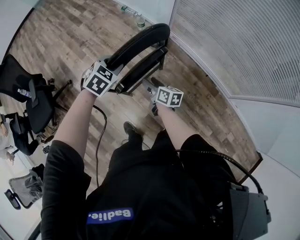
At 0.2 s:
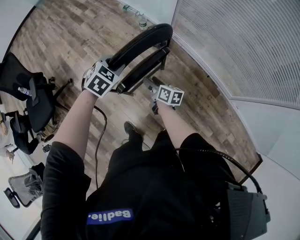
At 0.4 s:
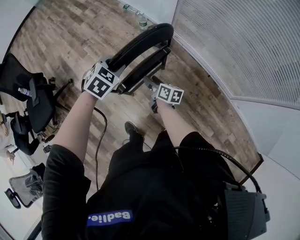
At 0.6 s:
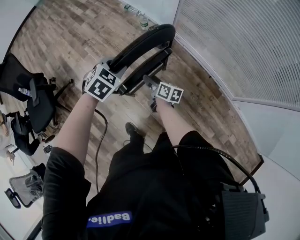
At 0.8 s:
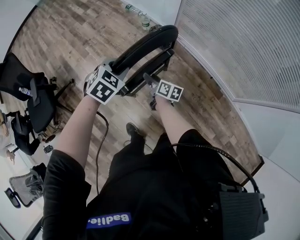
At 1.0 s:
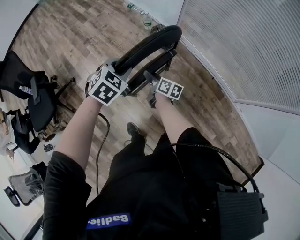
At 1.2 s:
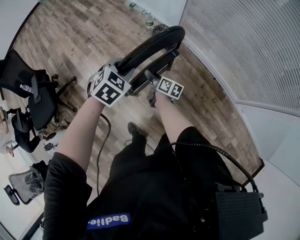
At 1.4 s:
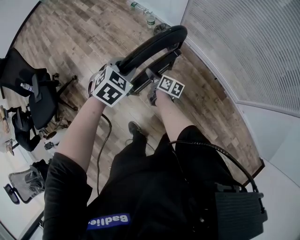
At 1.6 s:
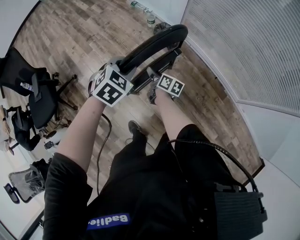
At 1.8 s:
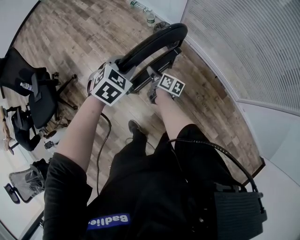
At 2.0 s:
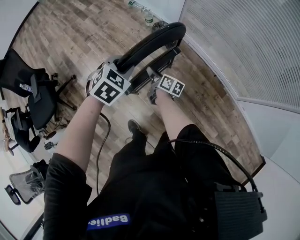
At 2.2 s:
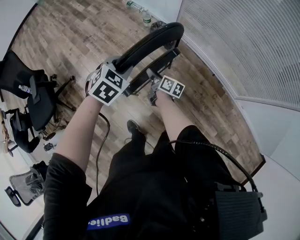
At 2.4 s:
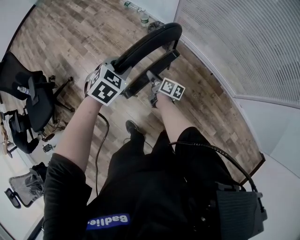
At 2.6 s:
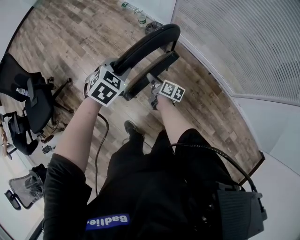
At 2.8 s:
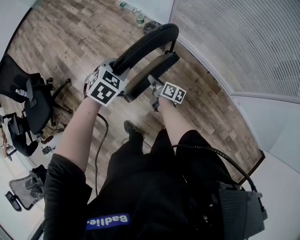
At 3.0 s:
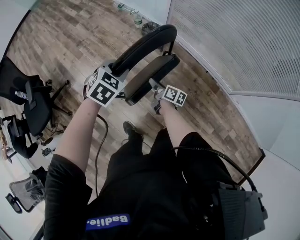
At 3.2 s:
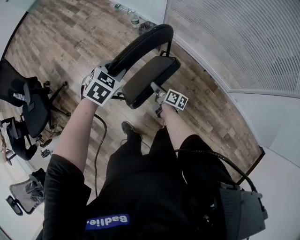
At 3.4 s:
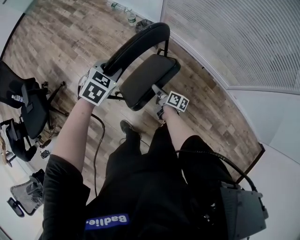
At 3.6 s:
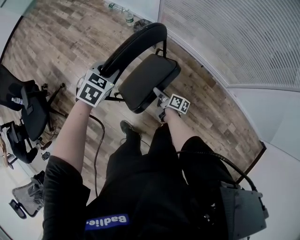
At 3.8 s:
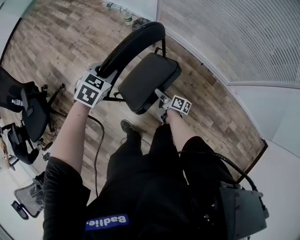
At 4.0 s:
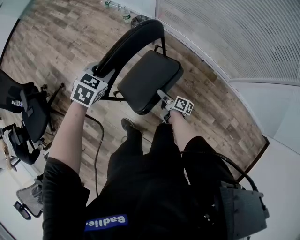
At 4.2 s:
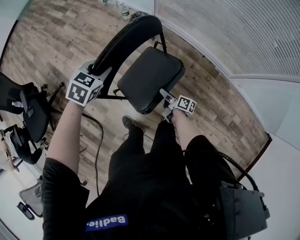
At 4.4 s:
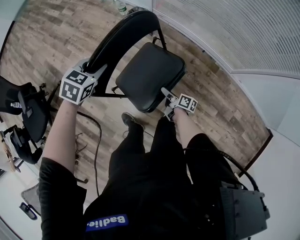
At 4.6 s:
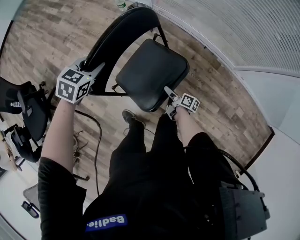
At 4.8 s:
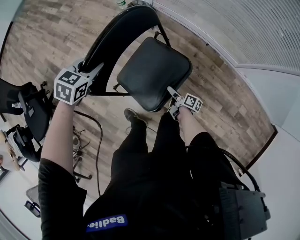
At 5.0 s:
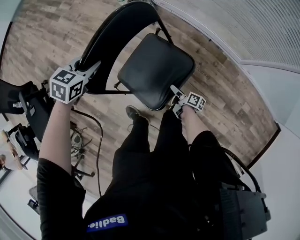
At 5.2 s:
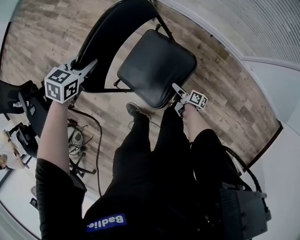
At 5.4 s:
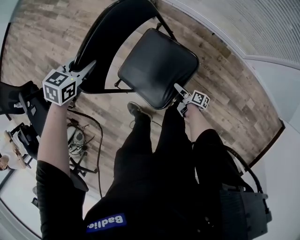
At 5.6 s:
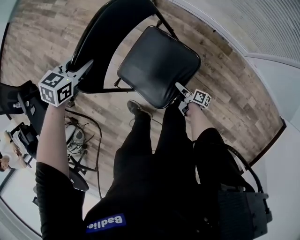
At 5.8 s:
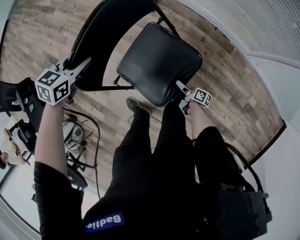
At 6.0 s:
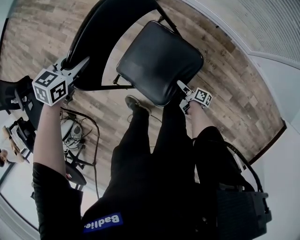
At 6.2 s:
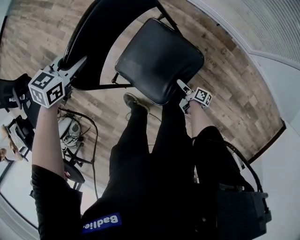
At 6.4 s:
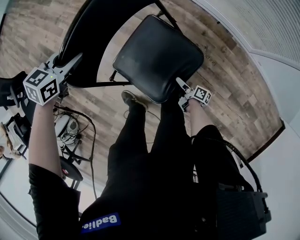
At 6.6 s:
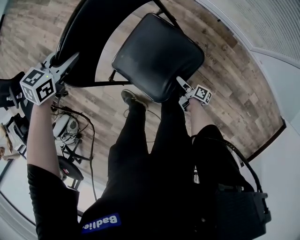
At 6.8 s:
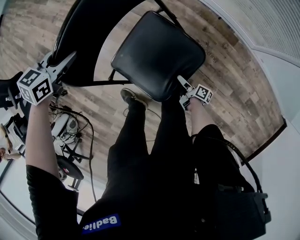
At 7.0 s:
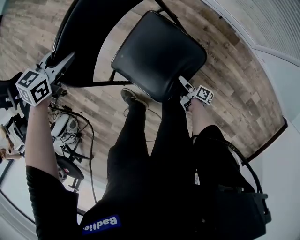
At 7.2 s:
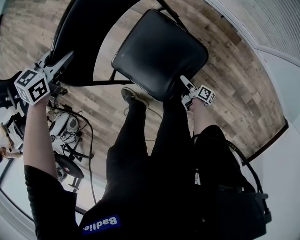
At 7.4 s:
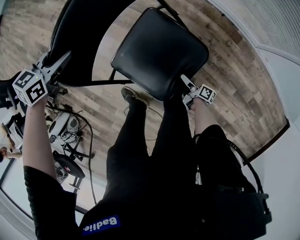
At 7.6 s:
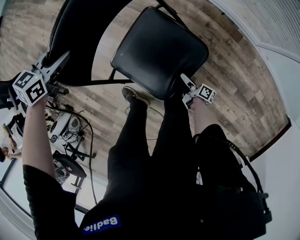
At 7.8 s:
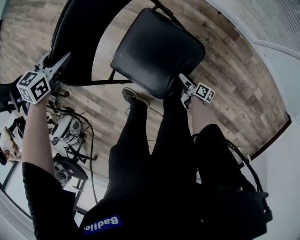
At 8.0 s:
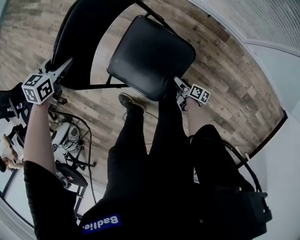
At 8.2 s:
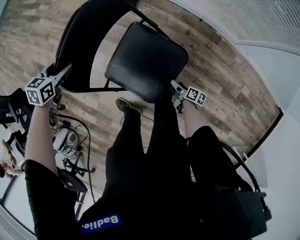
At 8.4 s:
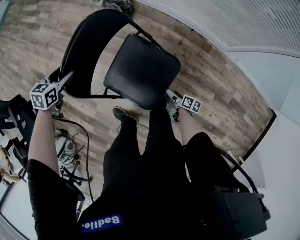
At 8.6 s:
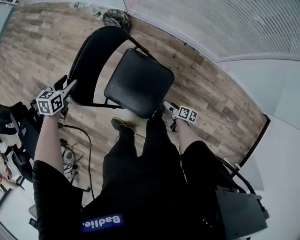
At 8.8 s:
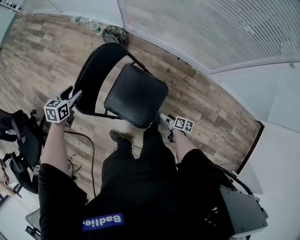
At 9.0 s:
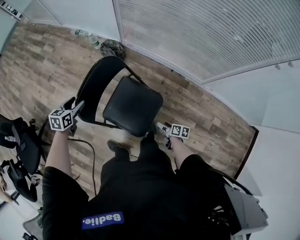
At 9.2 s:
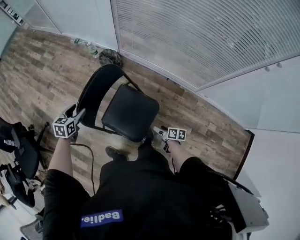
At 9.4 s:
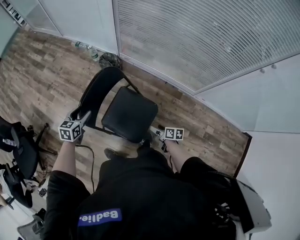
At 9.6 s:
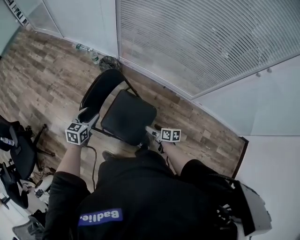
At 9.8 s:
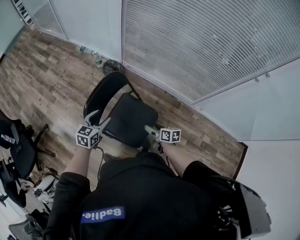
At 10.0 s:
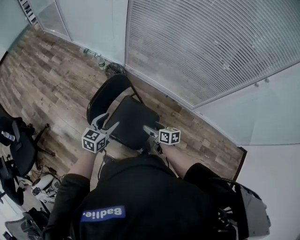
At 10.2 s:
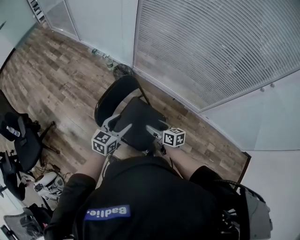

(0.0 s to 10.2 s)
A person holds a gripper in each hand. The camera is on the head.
0.0 s - 1.4 s: The right gripper moves forward and downward, roughly 10 cm.
1.4 s - 3.0 s: The right gripper moves backward and to the right, about 10 cm.
3.0 s - 4.4 s: The right gripper heads downward, to the right and backward, covering some 20 cm; the left gripper goes about 5 cm downward.
4.4 s - 5.8 s: The left gripper travels downward by approximately 10 cm. Meanwhile the right gripper is displaced downward and to the right by roughly 15 cm.
5.8 s - 7.2 s: The grippers both shift downward by some 5 cm.
7.2 s - 8.8 s: The left gripper heads upward, covering some 10 cm, and opens its fingers. The right gripper shifts about 20 cm upward, and changes its angle by about 20 degrees.
8.8 s - 10.2 s: The left gripper heads upward, backward and to the right, covering some 30 cm, and rotates some 30 degrees; the right gripper goes approximately 35 cm upward and to the left, and turns by some 40 degrees.

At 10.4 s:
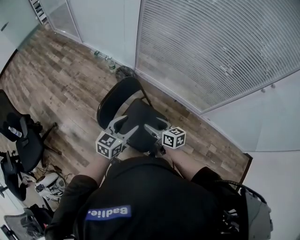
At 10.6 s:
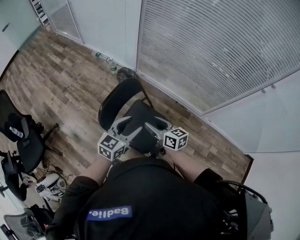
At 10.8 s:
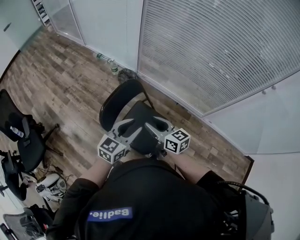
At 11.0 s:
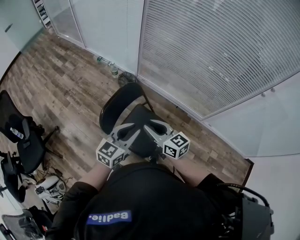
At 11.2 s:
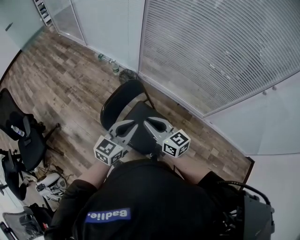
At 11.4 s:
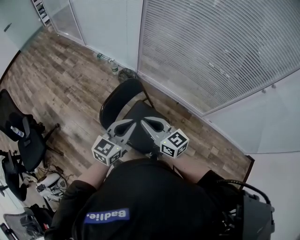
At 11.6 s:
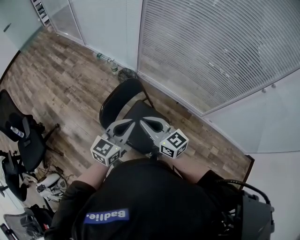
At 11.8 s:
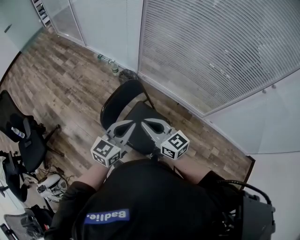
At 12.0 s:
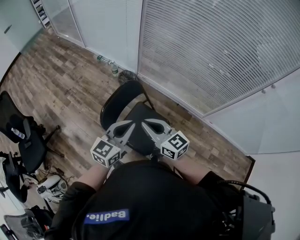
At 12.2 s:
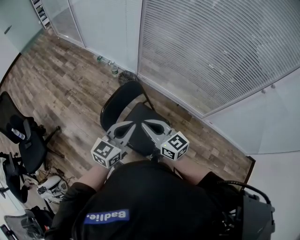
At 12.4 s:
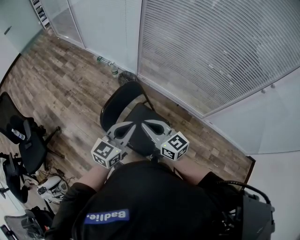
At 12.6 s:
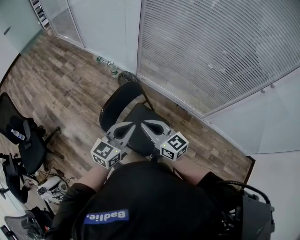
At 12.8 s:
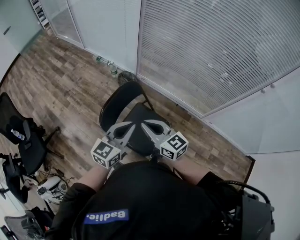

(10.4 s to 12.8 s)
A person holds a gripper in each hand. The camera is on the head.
10.4 s - 11.6 s: The right gripper moves upward and to the left, roughly 15 cm, turns by roughly 30 degrees, and closes; the left gripper is displaced upward by some 10 cm, and closes.
11.6 s - 12.8 s: Both grippers stay about where they are.

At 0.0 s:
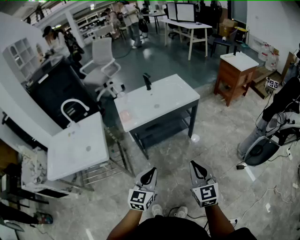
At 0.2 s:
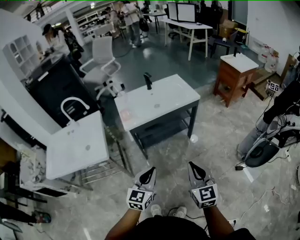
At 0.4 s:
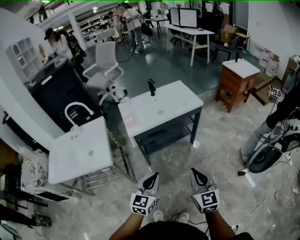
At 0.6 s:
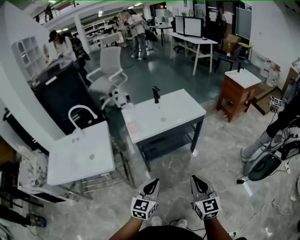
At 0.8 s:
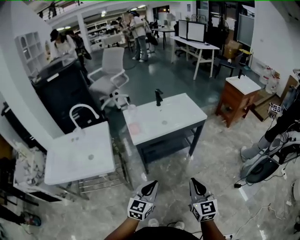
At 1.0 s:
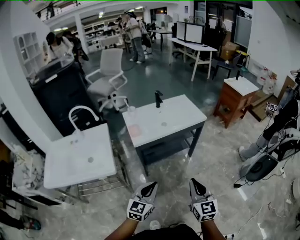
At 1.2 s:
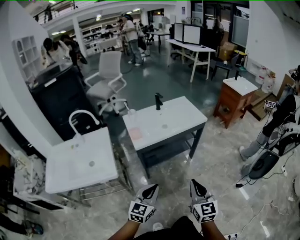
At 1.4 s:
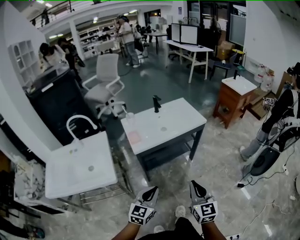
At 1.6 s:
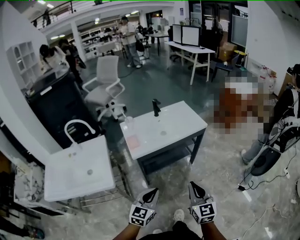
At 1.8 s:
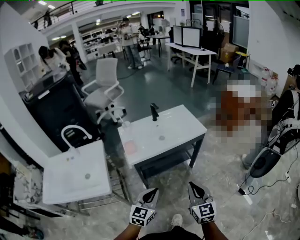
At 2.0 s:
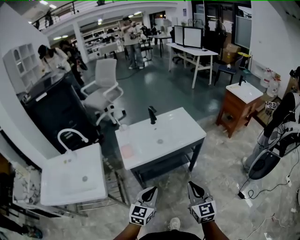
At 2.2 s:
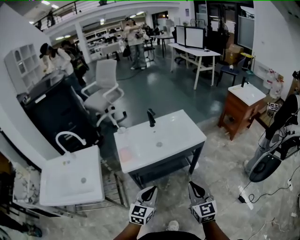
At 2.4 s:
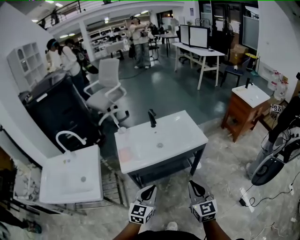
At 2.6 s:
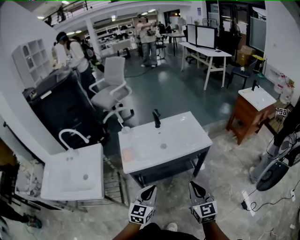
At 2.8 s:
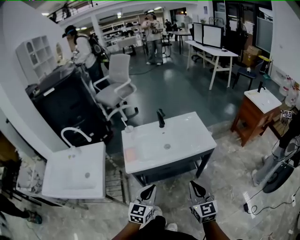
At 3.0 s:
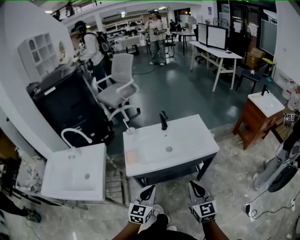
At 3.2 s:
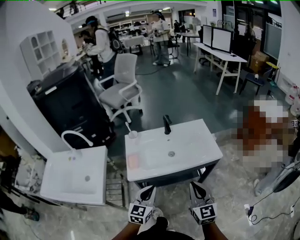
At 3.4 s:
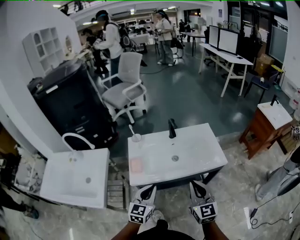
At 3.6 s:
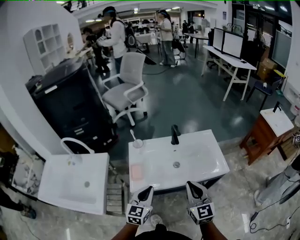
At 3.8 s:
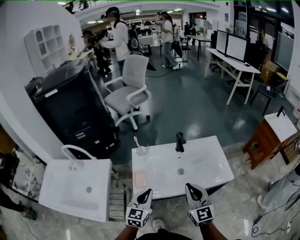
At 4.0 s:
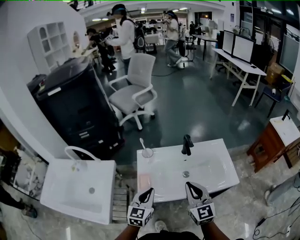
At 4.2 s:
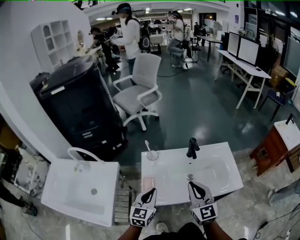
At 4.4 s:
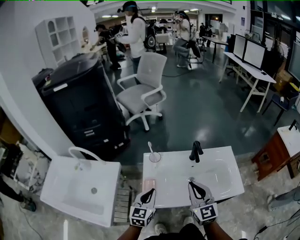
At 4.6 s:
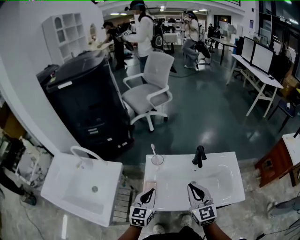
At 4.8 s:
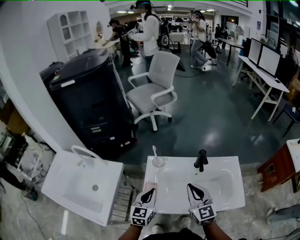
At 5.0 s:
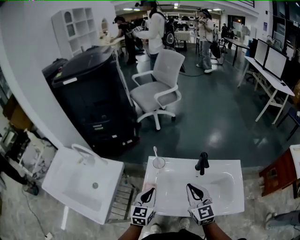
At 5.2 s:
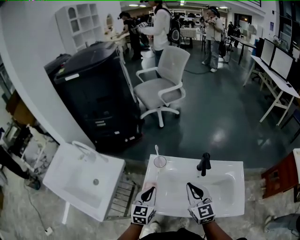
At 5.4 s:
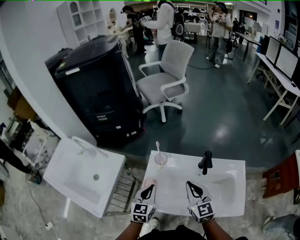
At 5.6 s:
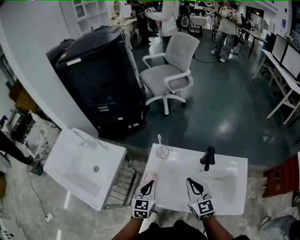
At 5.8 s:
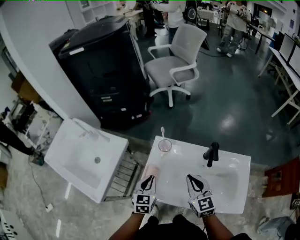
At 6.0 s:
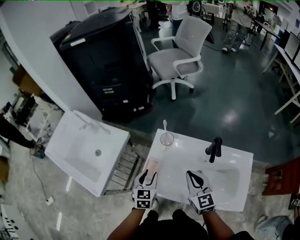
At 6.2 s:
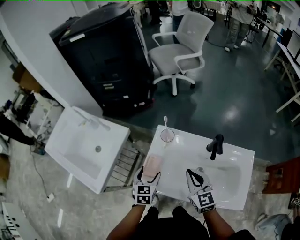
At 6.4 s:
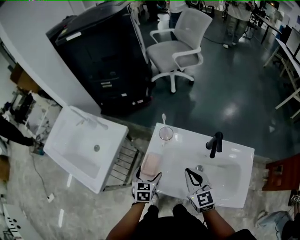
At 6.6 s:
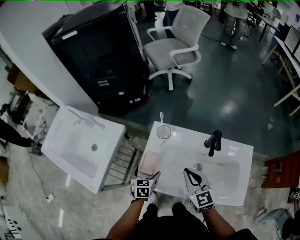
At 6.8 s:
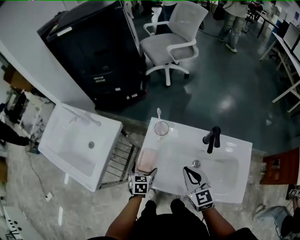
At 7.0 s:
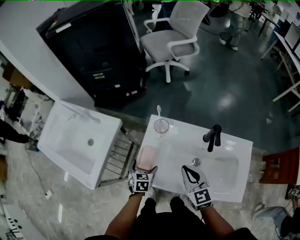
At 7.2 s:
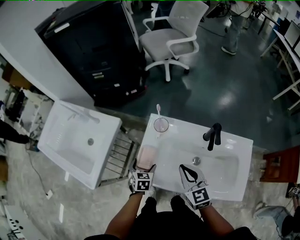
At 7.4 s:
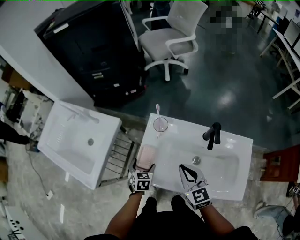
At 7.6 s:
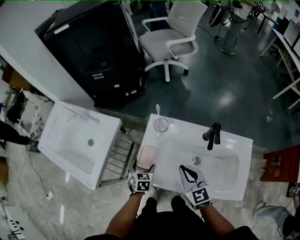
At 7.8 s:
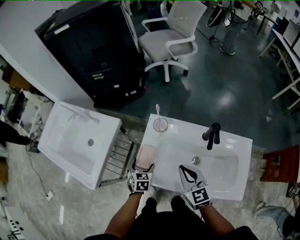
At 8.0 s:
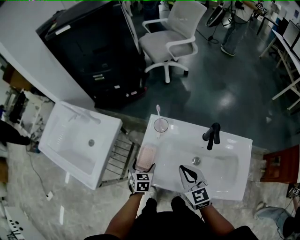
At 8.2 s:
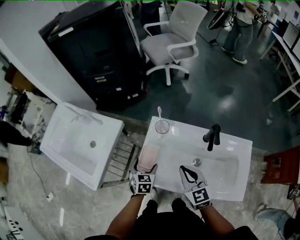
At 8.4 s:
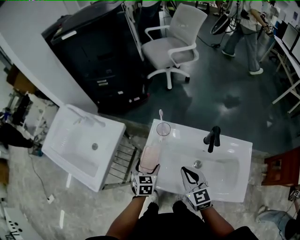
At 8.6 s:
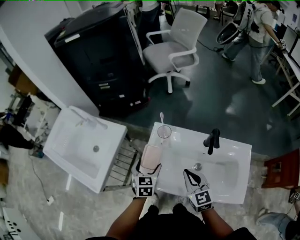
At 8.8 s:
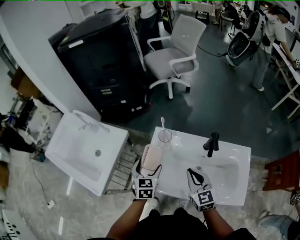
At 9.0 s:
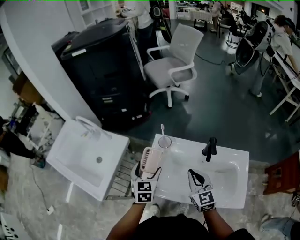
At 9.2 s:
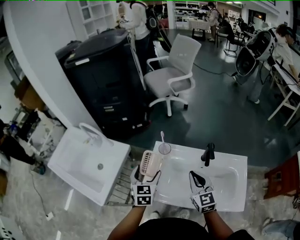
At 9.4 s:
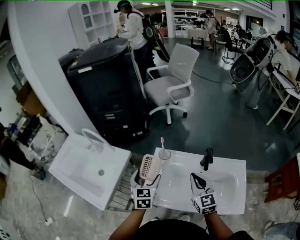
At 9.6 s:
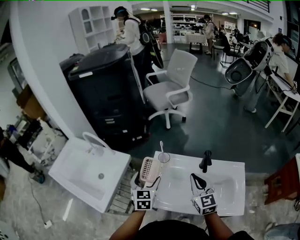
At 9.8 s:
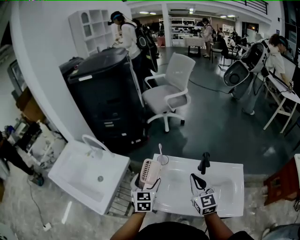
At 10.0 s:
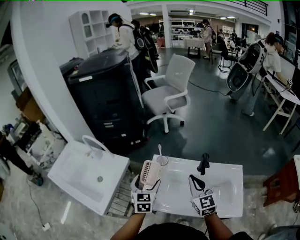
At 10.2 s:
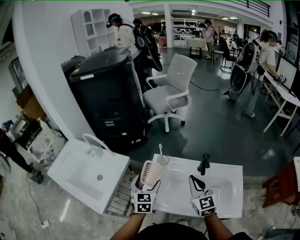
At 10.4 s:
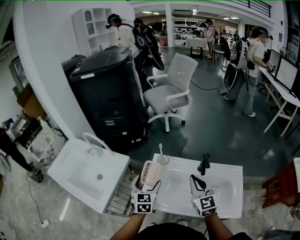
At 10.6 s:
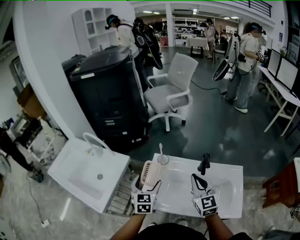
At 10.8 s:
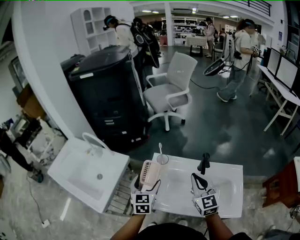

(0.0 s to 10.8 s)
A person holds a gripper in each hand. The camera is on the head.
0.0 s - 1.6 s: The grippers both shift to the left and forward by roughly 10 cm.
1.6 s - 3.0 s: The grippers both shift forward by some 20 cm.
3.0 s - 4.6 s: The grippers both shift forward and to the left by some 30 cm.
4.6 s - 6.2 s: The left gripper shifts about 10 cm downward, changes its angle by roughly 30 degrees, and opens its fingers. The right gripper heads downward and forward, covering roughly 10 cm, and rotates about 20 degrees.
6.2 s - 7.8 s: The left gripper goes some 10 cm downward.
7.8 s - 9.2 s: The left gripper heads upward, covering some 20 cm, and changes its angle by some 20 degrees. Meanwhile the right gripper travels upward by approximately 5 cm.
9.2 s - 10.8 s: The right gripper goes some 5 cm upward.
